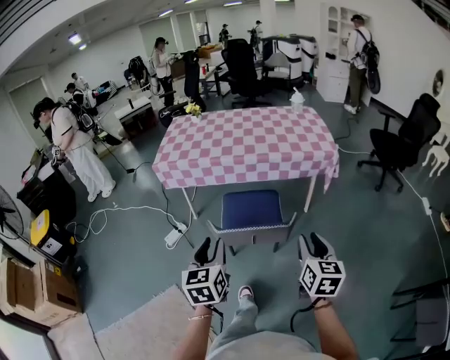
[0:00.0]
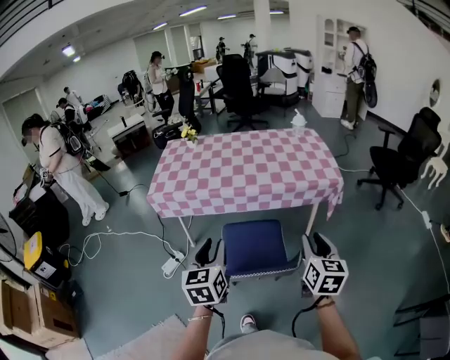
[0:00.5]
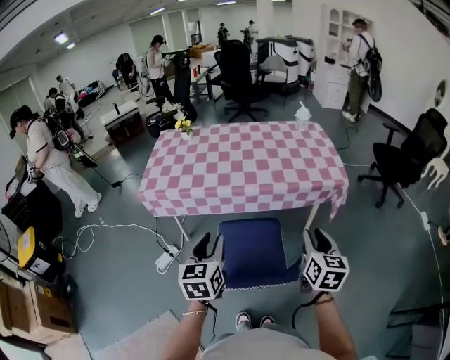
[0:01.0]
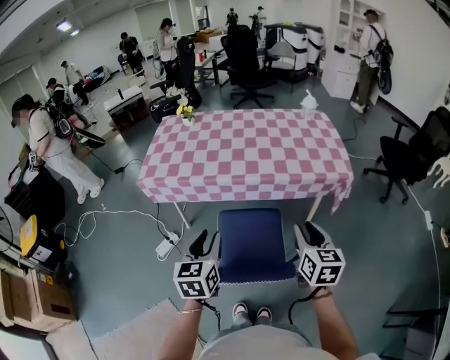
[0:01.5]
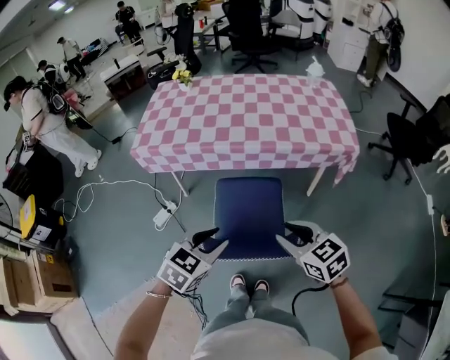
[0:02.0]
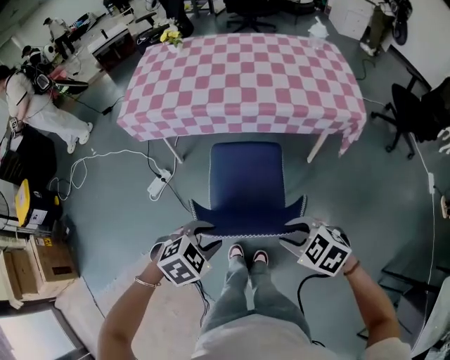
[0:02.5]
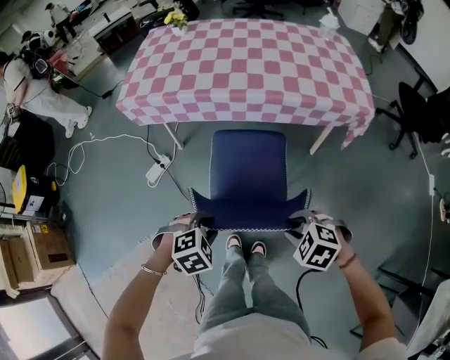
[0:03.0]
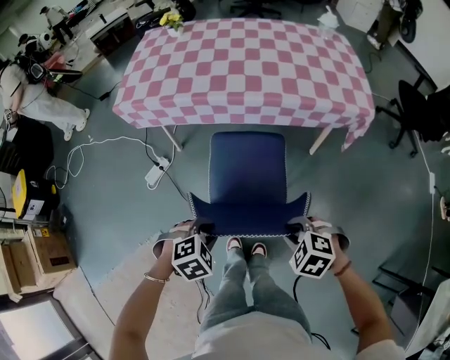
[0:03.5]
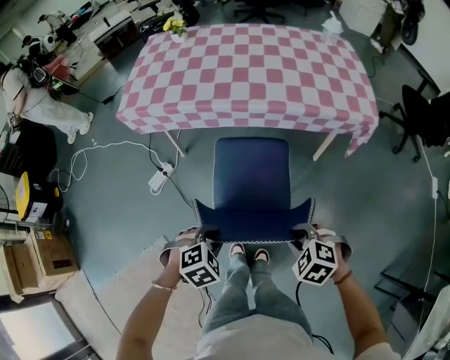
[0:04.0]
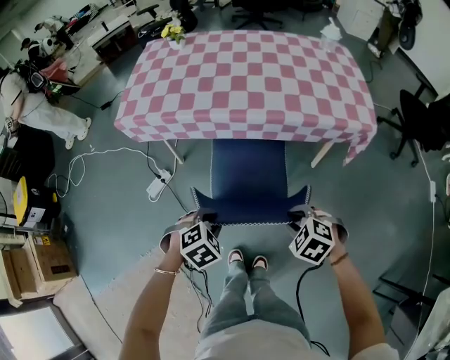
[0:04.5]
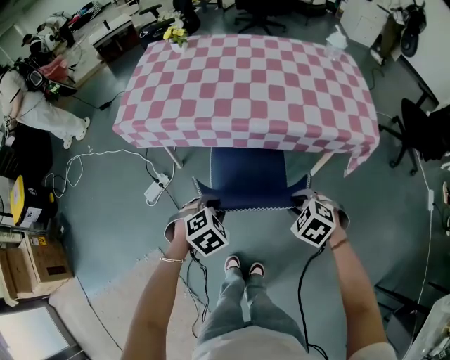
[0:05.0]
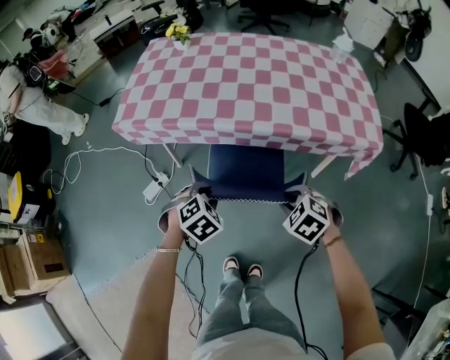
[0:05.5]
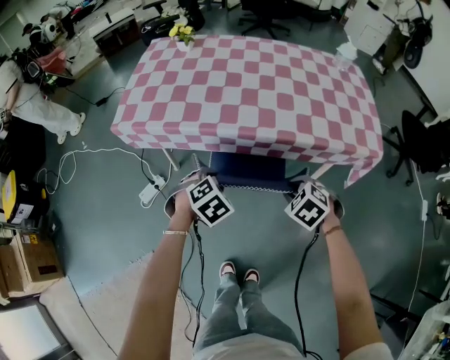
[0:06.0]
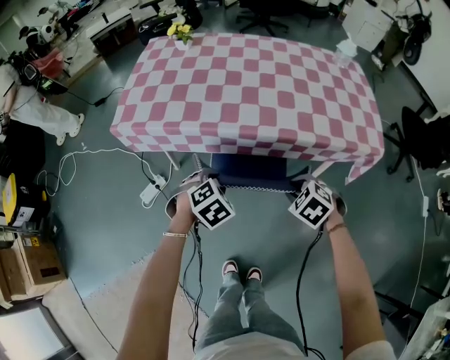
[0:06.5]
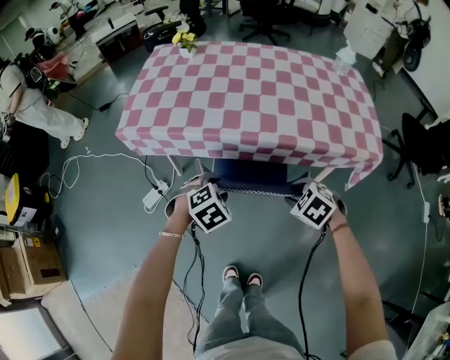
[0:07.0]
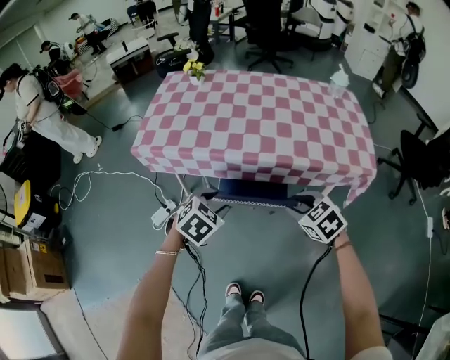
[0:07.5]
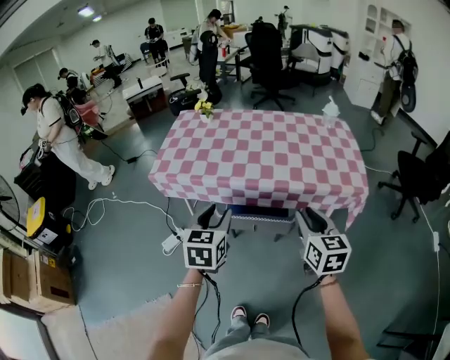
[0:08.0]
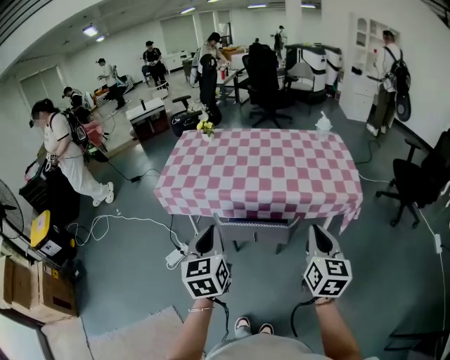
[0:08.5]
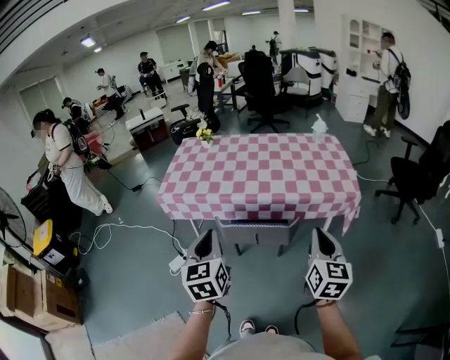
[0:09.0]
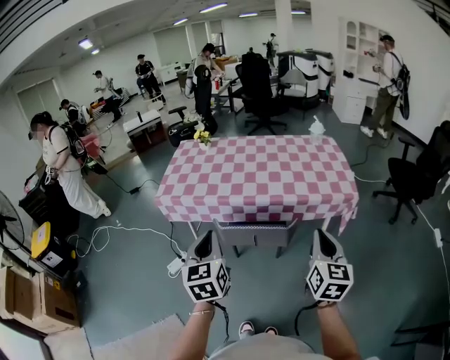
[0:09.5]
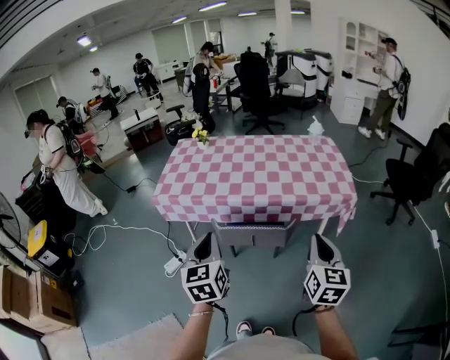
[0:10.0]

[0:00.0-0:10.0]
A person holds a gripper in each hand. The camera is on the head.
0:00.0 to 0:02.0: The left gripper is displaced forward by approximately 20 cm, and swivels about 50 degrees. Meanwhile the right gripper is displaced forward and to the left by some 20 cm, and turns by some 50 degrees.
0:02.0 to 0:04.0: The two grippers go some 15 cm downward. The right gripper points its fingers about 40 degrees further downward. The left gripper tips its fingers downward by some 30 degrees.
0:04.0 to 0:06.0: Both grippers travel together forward, about 30 cm.
0:06.0 to 0:08.0: Both grippers move upward, about 25 cm. The left gripper points its fingers about 40 degrees further upward; the right gripper angles its fingers upward, by some 50 degrees.
0:08.0 to 0:10.0: Both grippers move backward, approximately 10 cm. The right gripper closes up. The left gripper closes its fingers.

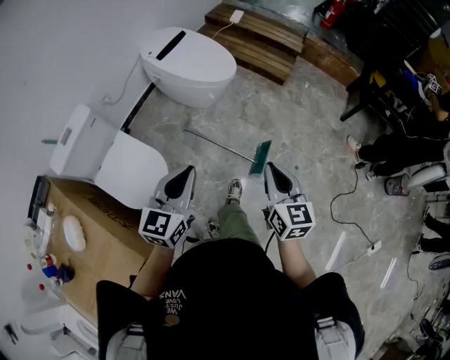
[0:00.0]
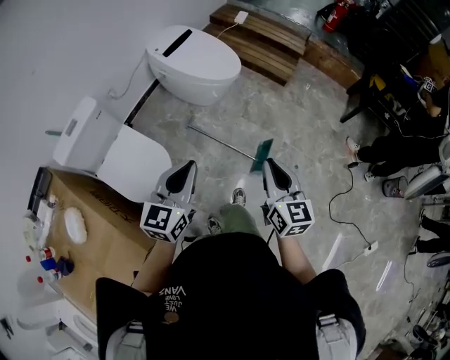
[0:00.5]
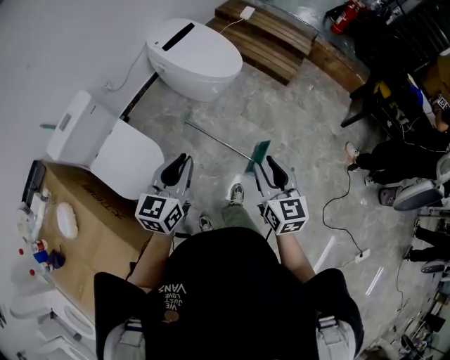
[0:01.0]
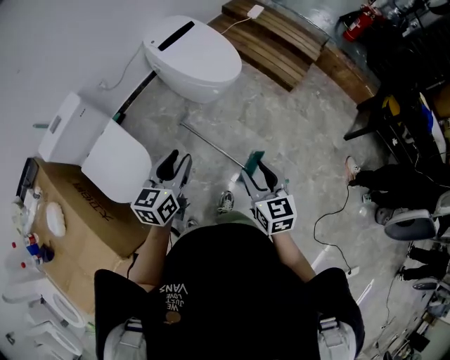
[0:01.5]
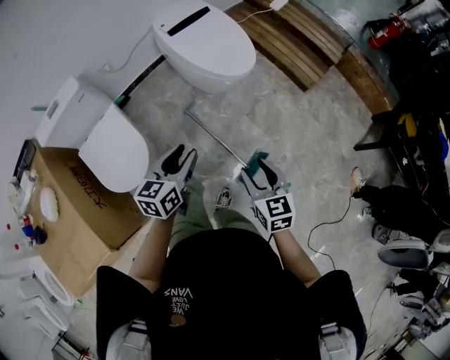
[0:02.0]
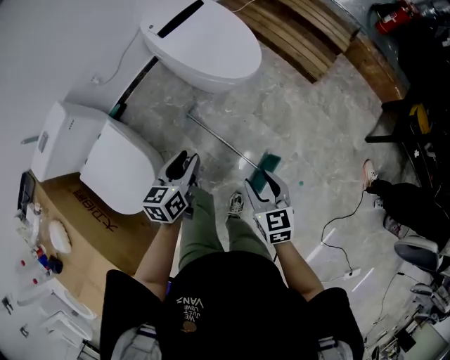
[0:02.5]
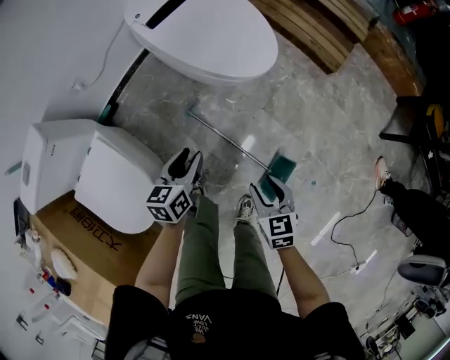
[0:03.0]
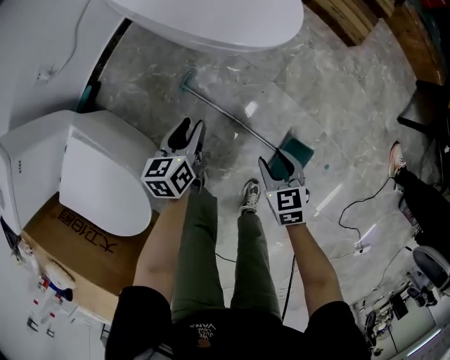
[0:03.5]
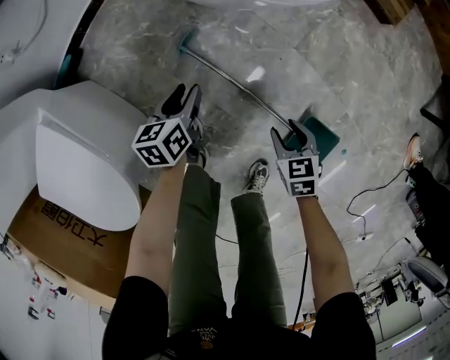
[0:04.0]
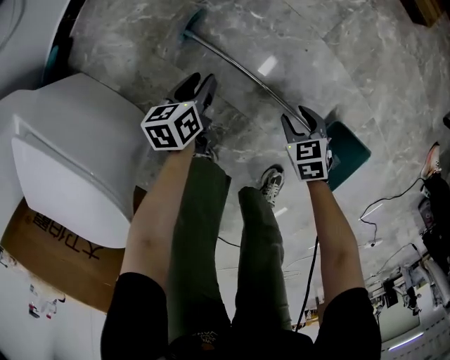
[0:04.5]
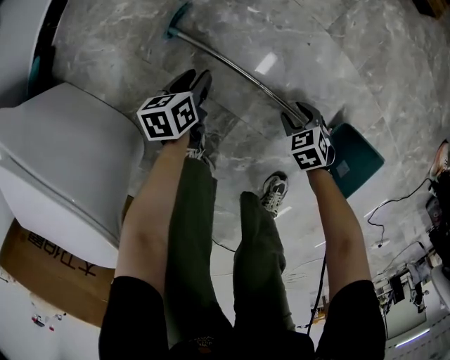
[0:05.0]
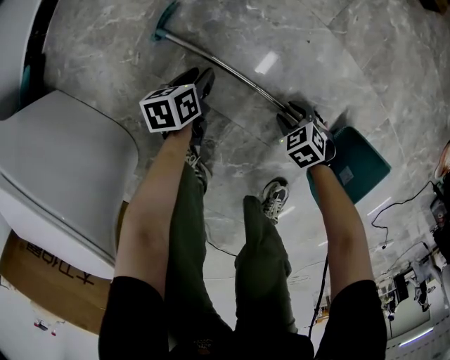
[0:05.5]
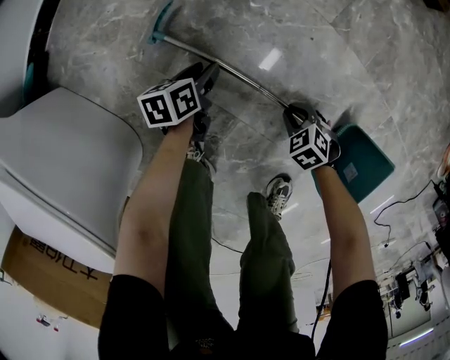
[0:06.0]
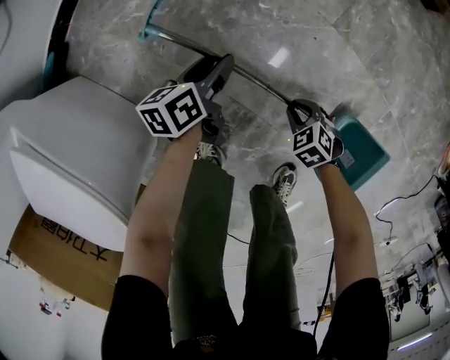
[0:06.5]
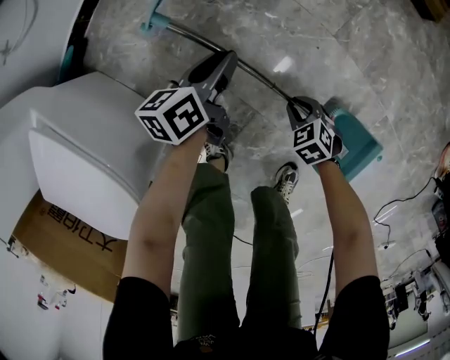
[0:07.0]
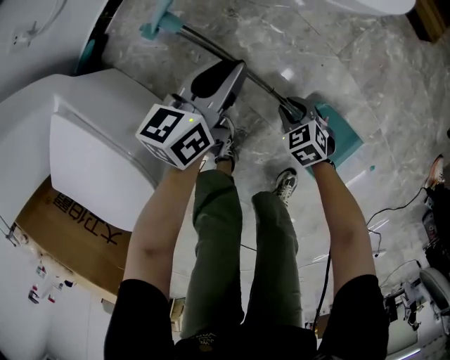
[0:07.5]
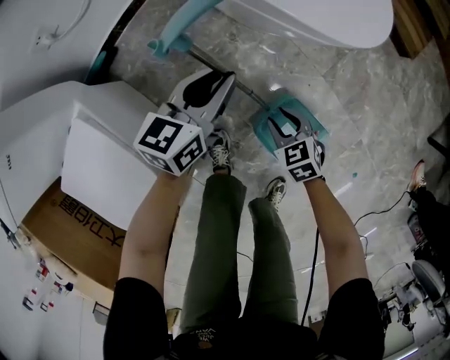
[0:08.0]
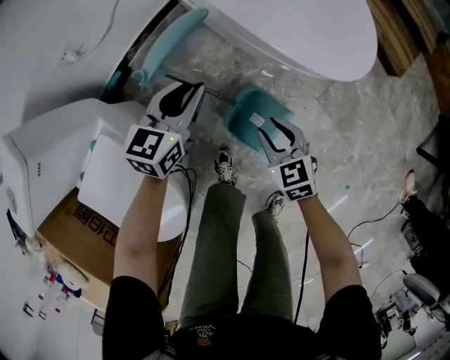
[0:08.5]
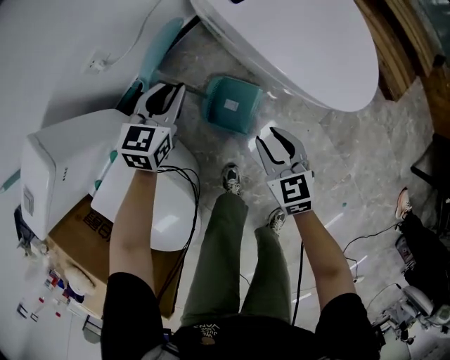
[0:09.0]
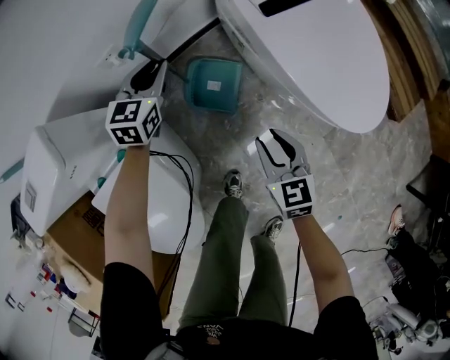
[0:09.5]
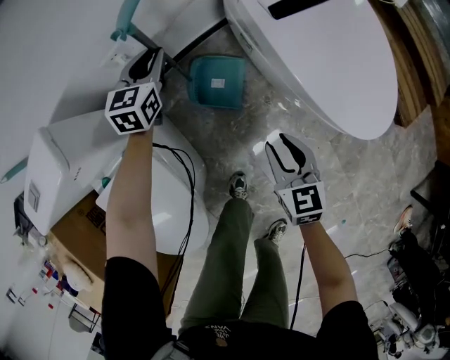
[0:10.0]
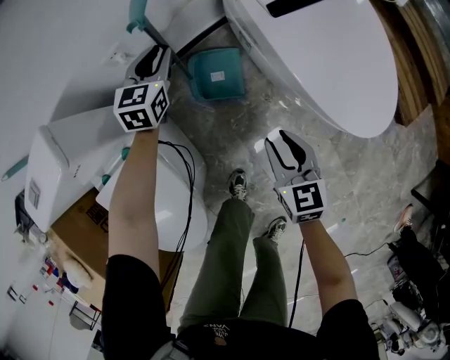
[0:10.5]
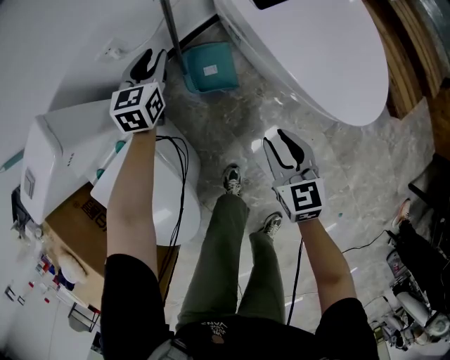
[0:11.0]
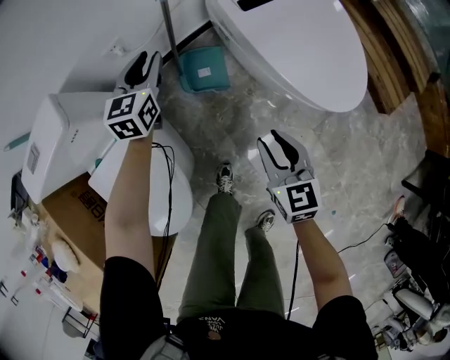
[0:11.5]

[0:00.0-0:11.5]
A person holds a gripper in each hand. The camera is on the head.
0:00.0 to 0:02.0: The two grippers go about 20 cm forward and downward. The right gripper swivels some 30 degrees, and opens. The left gripper rotates roughly 30 degrees, and opens its fingers.
0:02.0 to 0:04.0: The left gripper goes about 60 cm downward and forward, and swivels approximately 20 degrees; the right gripper heads downward, covering roughly 50 cm, and tips its fingers downward by some 30 degrees.
0:04.0 to 0:06.0: The grippers both shift downward by roughly 30 cm. The right gripper changes its angle by about 30 degrees, and closes.
0:06.0 to 0:07.5: The left gripper moves upward, roughly 35 cm, and rotates roughly 30 degrees; the right gripper shifts roughly 20 cm upward.
0:07.5 to 0:09.5: The right gripper heads upward, forward and to the left, covering roughly 40 cm, and rotates some 30 degrees. Meanwhile the left gripper shifts roughly 40 cm to the left, forward and upward, and swivels some 40 degrees.
0:09.5 to 0:11.5: Both grippers move upward and backward, approximately 10 cm.

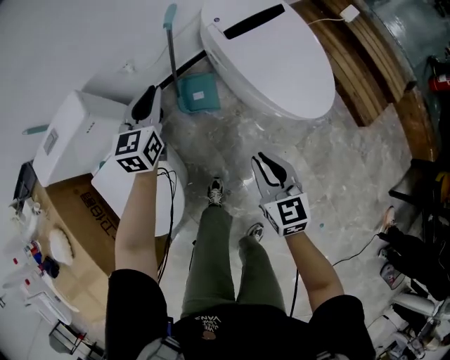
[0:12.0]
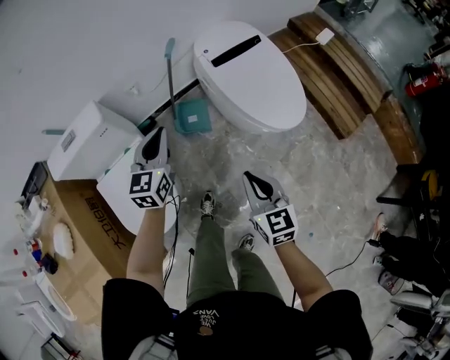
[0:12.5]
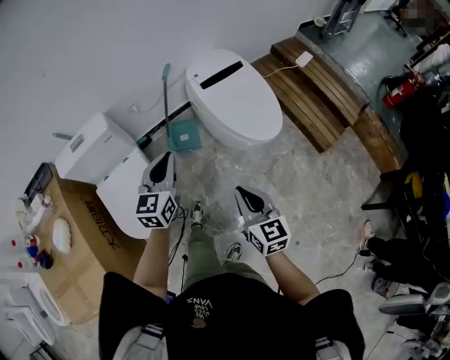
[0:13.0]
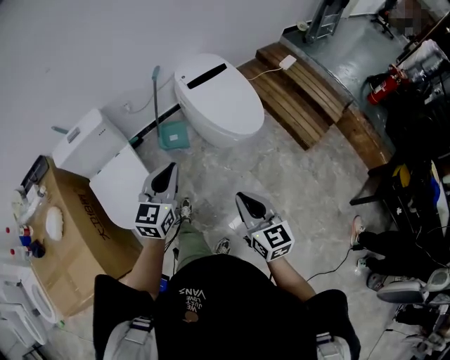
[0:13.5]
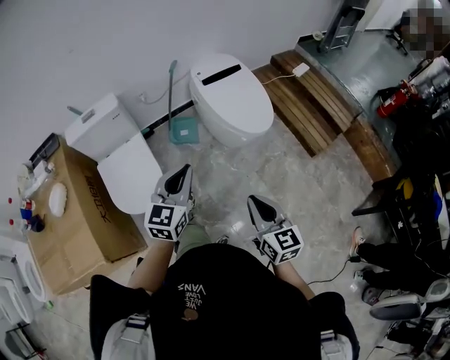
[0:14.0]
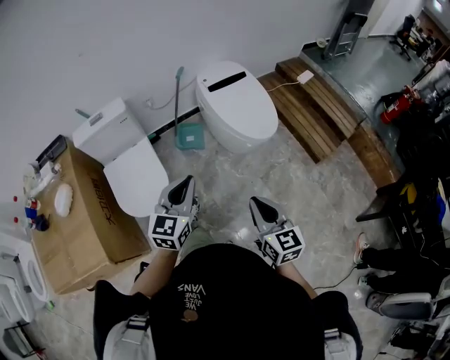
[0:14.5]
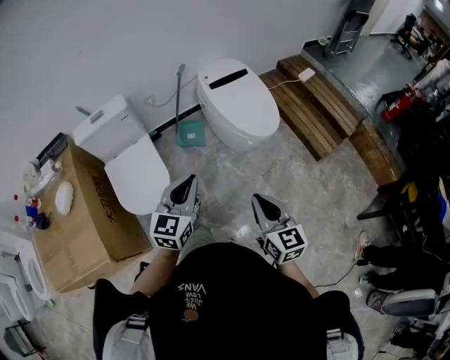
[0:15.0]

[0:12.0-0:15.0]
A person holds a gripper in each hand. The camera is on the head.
0:12.0 to 0:13.5: The grippers both shift backward and upward by roughly 40 cm.
0:13.5 to 0:15.0: The left gripper moves backward, some 10 cm. The right gripper shifts roughly 5 cm backward.

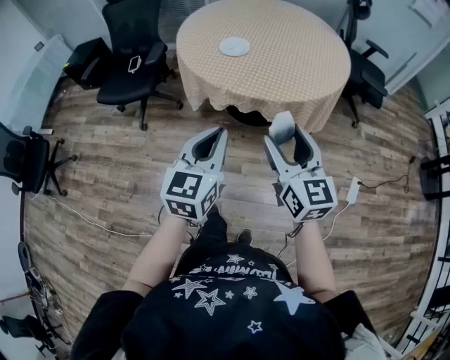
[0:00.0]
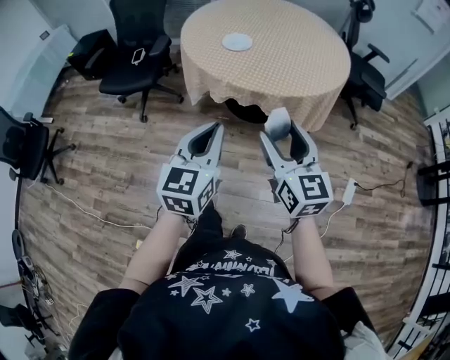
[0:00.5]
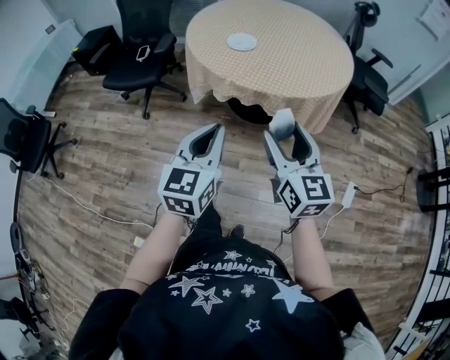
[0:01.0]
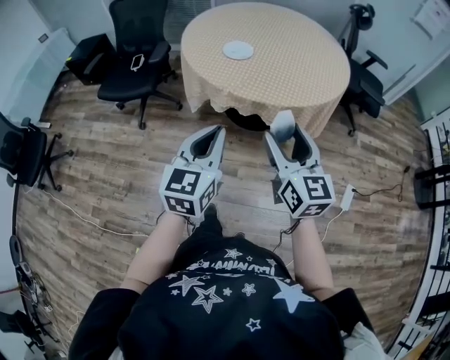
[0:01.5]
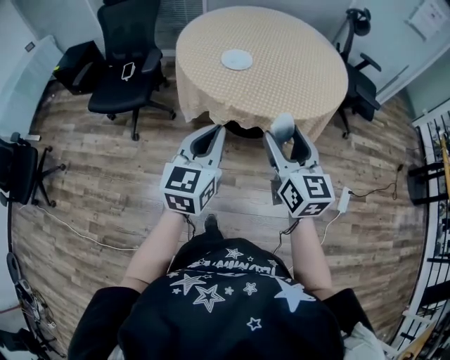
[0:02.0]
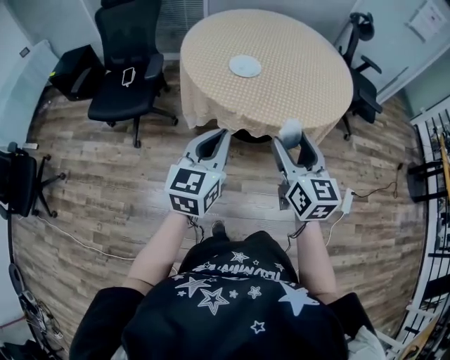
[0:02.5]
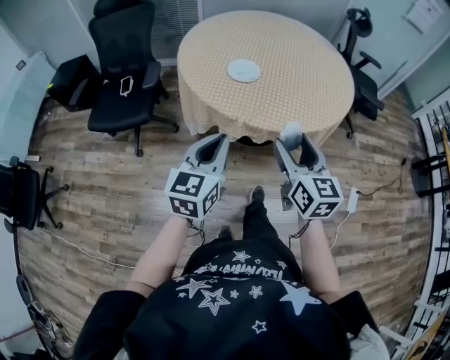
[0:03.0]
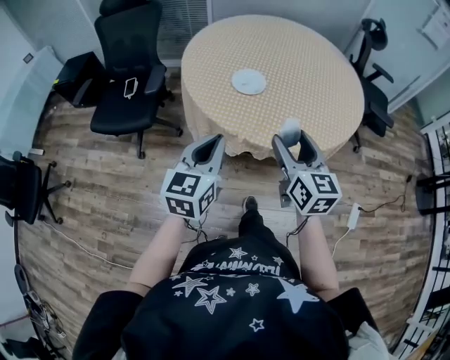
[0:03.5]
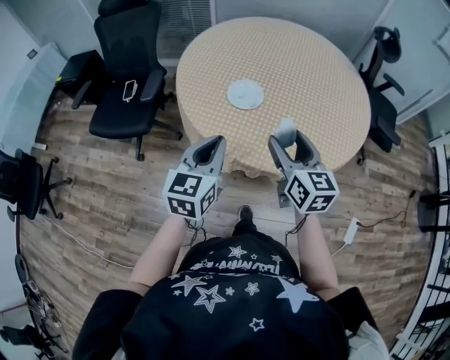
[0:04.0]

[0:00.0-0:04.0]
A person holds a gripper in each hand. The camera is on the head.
0:00.0 to 0:02.0: The left gripper shifts roughly 10 cm forward and to the left. The right gripper is displaced forward by about 5 cm.
0:02.0 to 0:04.0: Both grippers travel together forward, about 25 cm.
